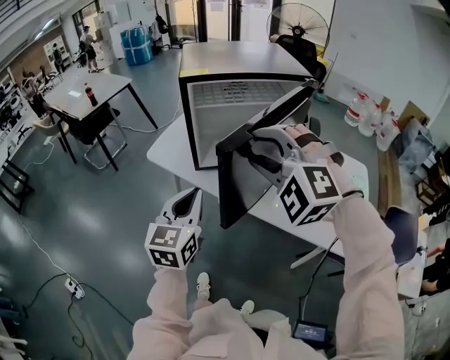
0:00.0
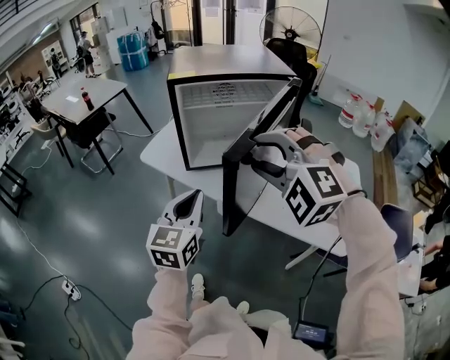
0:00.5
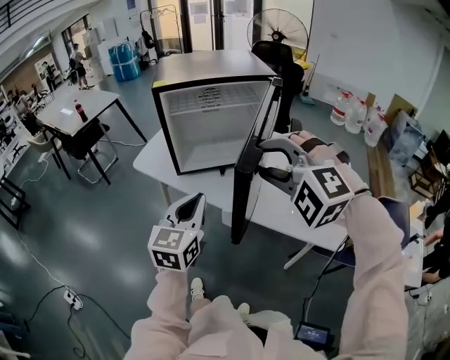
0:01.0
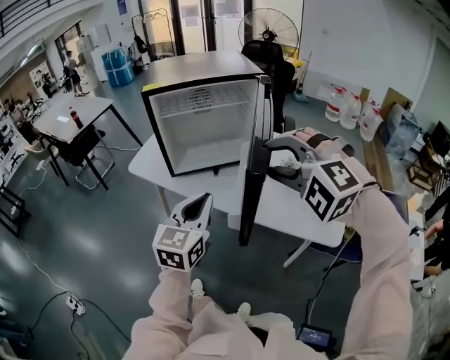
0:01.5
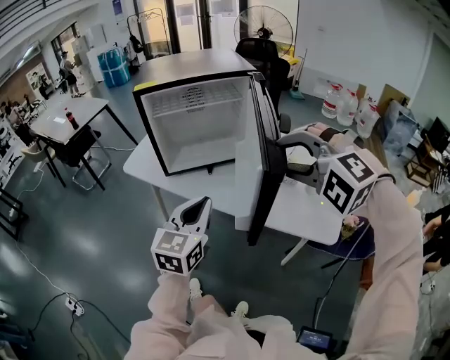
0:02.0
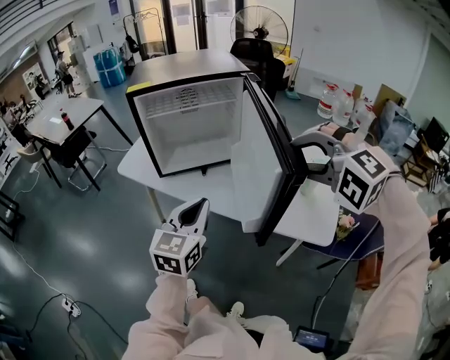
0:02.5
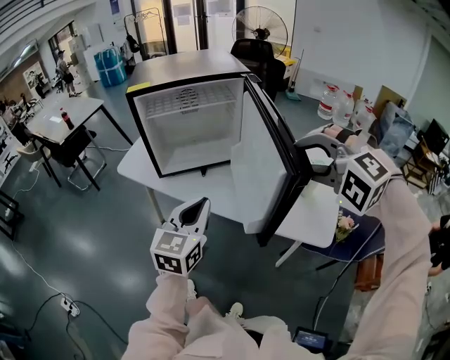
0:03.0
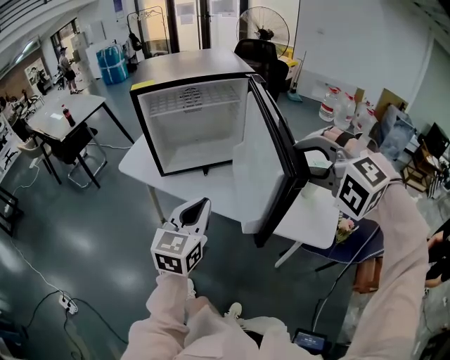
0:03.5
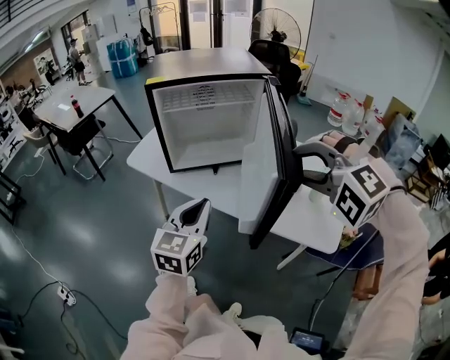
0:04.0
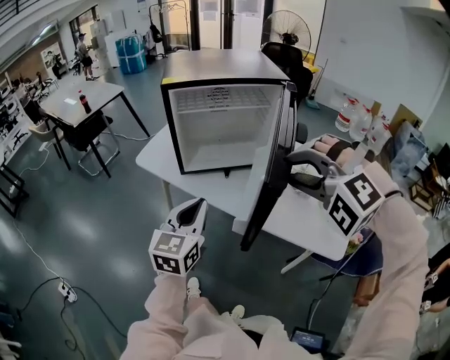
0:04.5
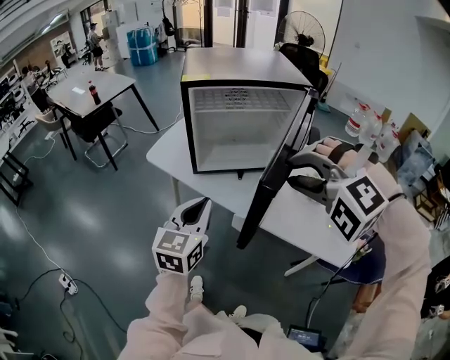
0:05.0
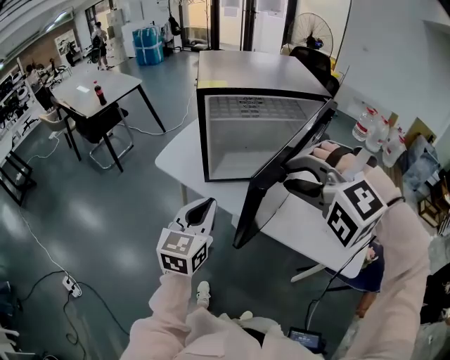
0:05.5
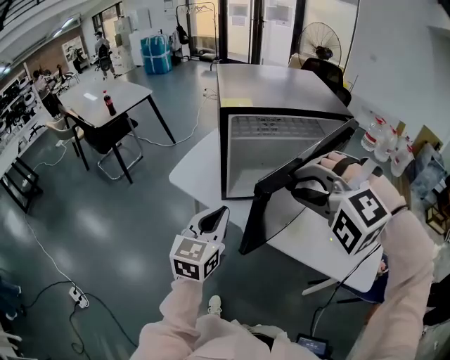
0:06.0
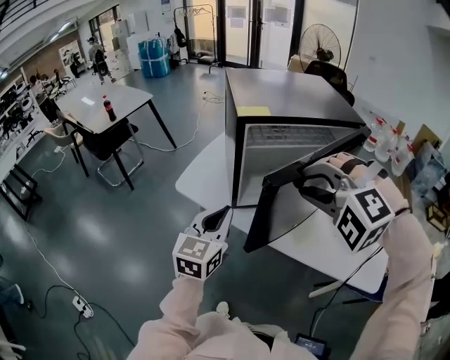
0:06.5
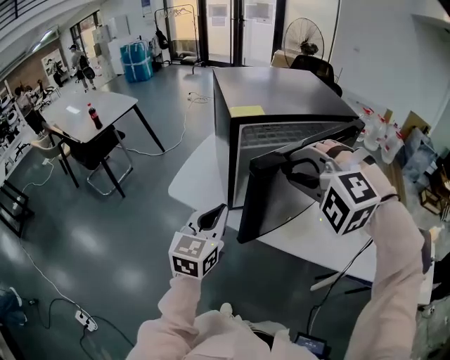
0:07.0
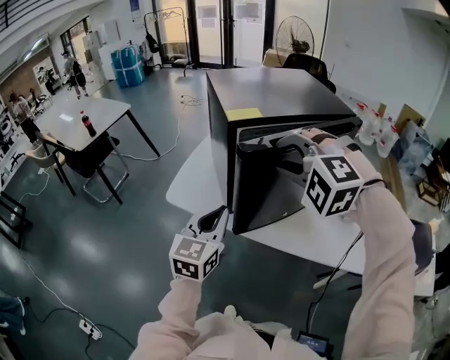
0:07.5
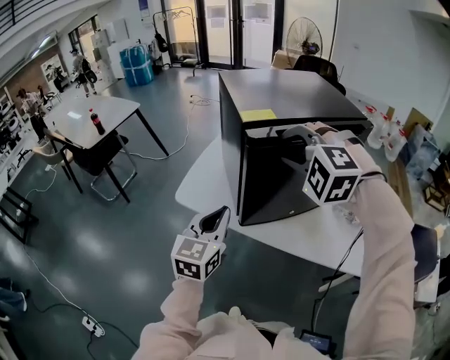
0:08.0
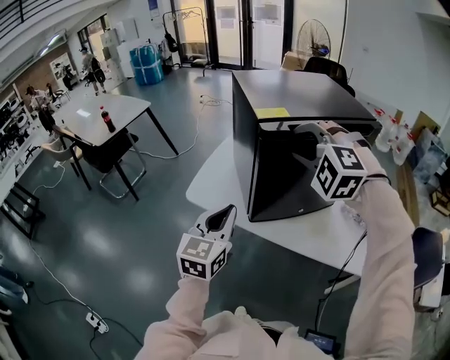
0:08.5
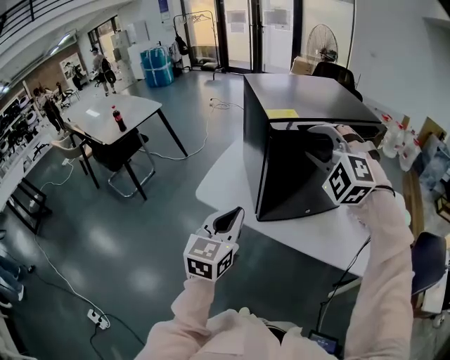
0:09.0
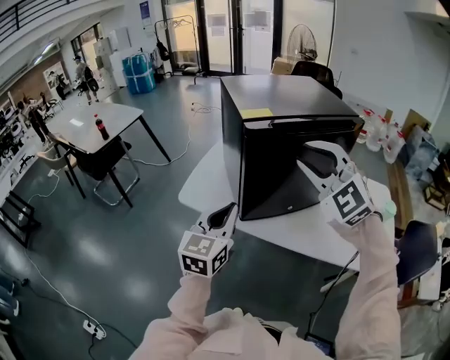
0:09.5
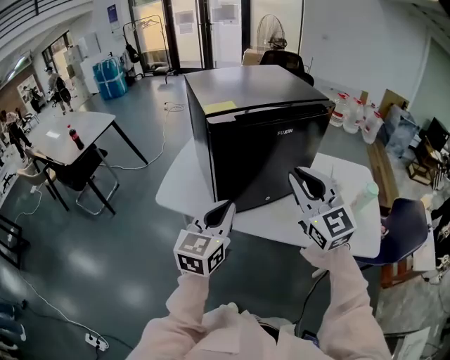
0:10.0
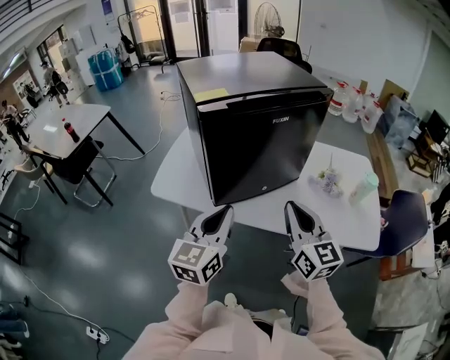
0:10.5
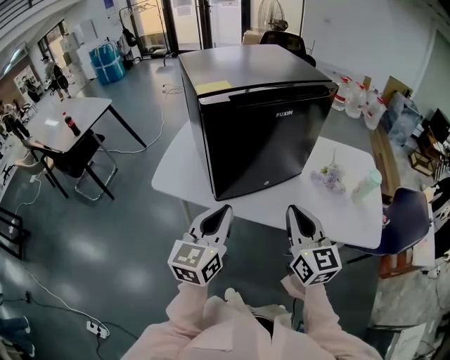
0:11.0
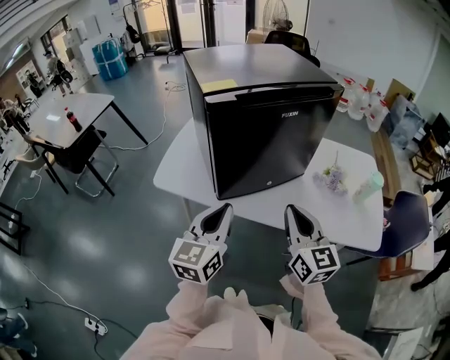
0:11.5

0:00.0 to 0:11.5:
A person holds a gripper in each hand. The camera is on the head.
0:00.0 to 0:02.0: Both grippers move to the right and backward, some 20 cm.
0:02.0 to 0:04.0: There are only small adjustments of the grippers.
0:04.0 to 0:06.0: Both grippers move to the left and forward, some 25 cm.
0:06.0 to 0:07.5: The left gripper travels forward and to the left by approximately 10 cm. Meanwhile the right gripper heads forward and to the left, covering about 15 cm.
0:07.5 to 0:09.5: The right gripper rotates about 40 degrees.
0:09.5 to 0:11.5: The left gripper heads to the right, covering approximately 5 cm. The right gripper goes roughly 20 cm downward, backward and to the right, rolls clockwise, seen from behind, by roughly 60 degrees, and closes its fingers.

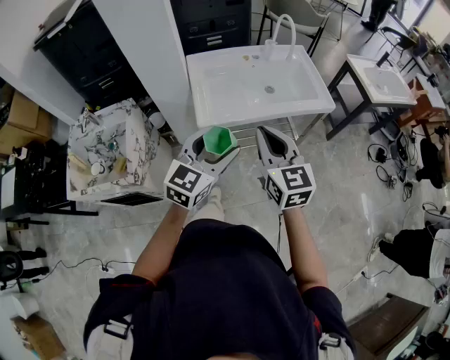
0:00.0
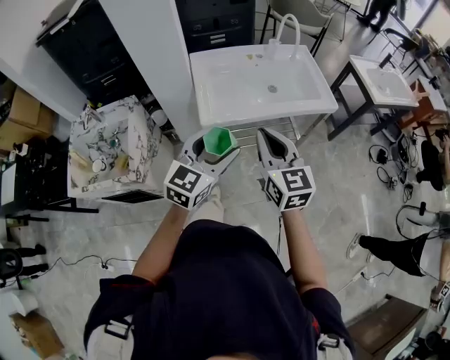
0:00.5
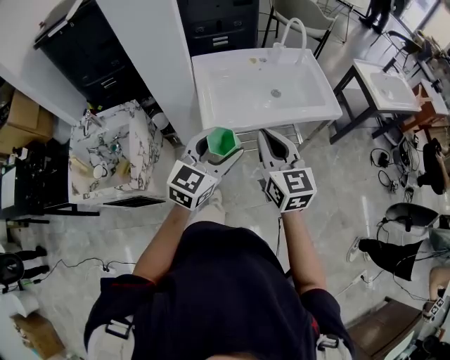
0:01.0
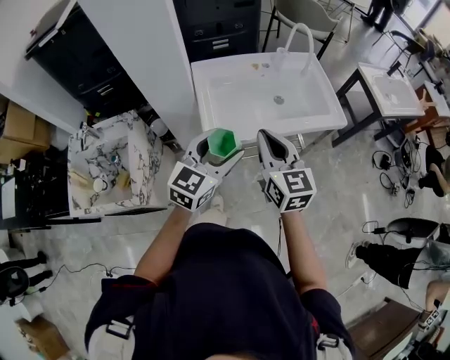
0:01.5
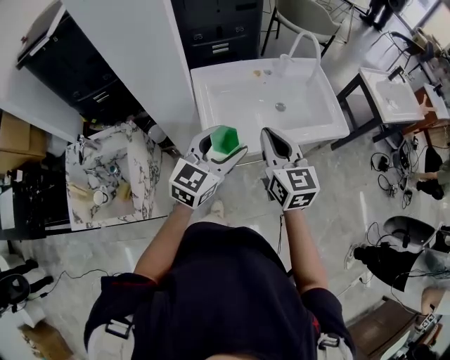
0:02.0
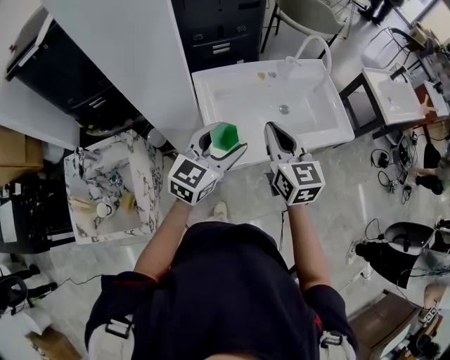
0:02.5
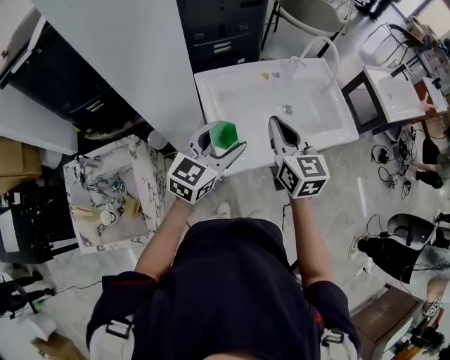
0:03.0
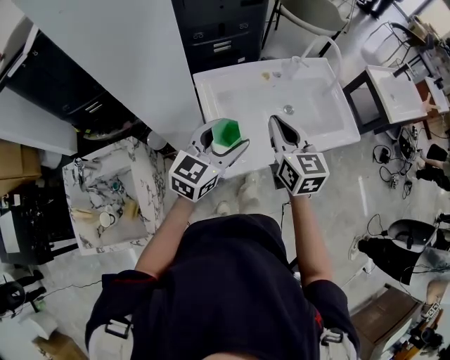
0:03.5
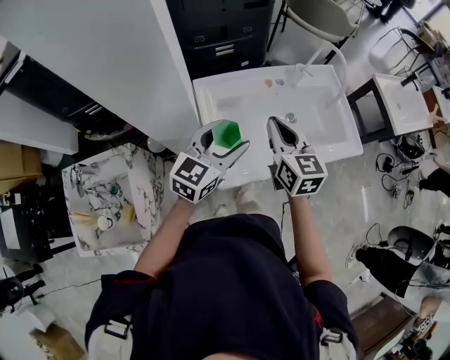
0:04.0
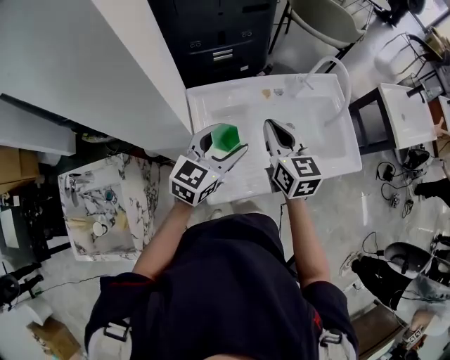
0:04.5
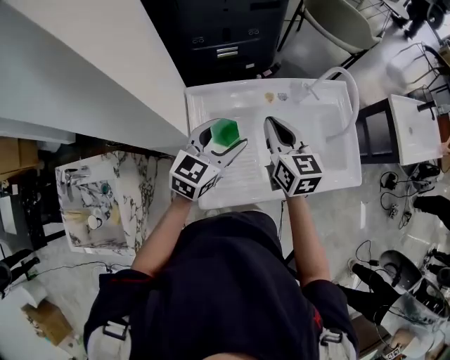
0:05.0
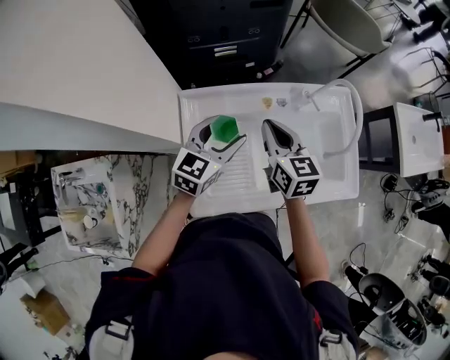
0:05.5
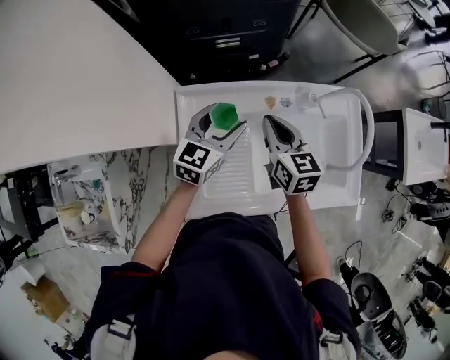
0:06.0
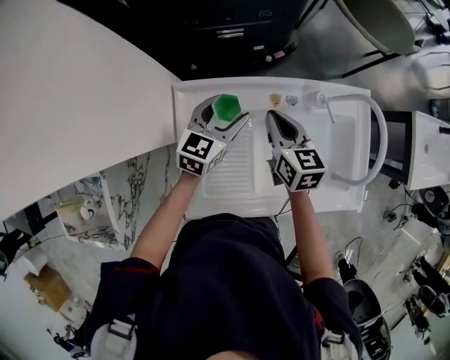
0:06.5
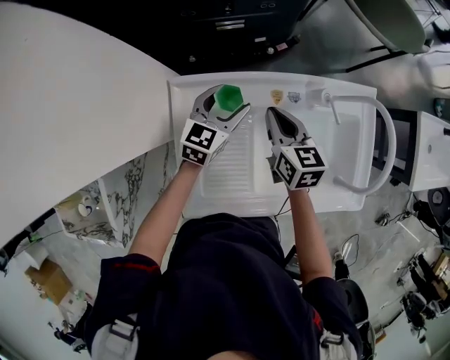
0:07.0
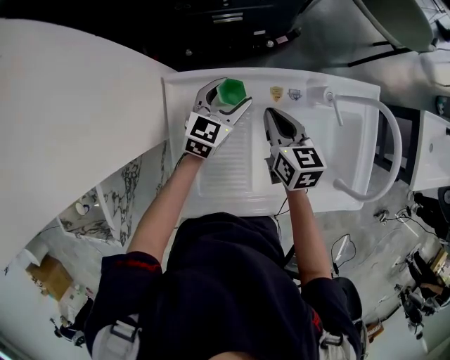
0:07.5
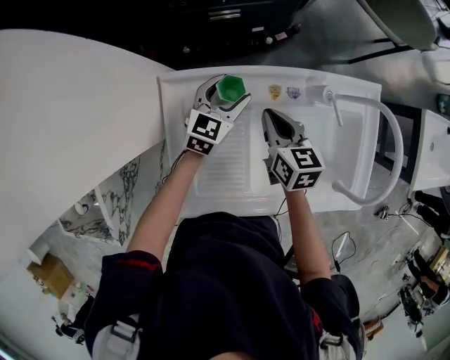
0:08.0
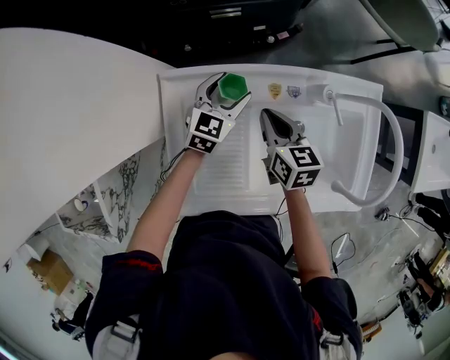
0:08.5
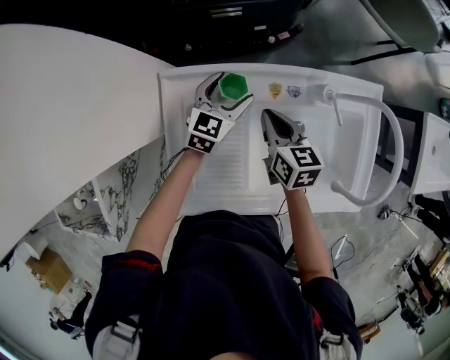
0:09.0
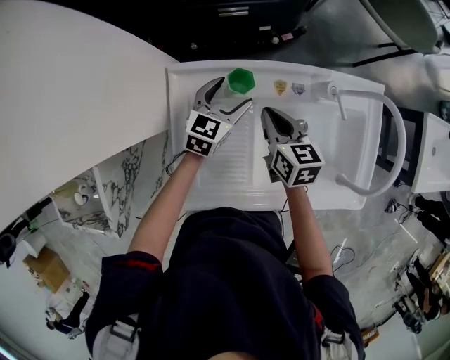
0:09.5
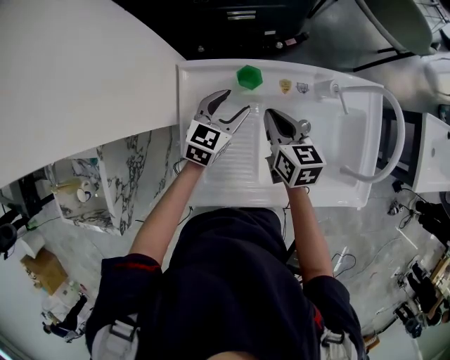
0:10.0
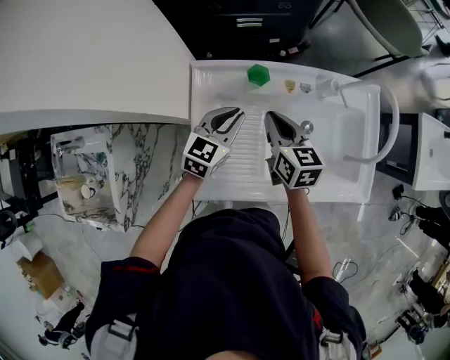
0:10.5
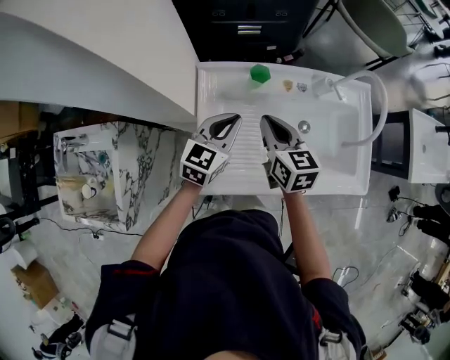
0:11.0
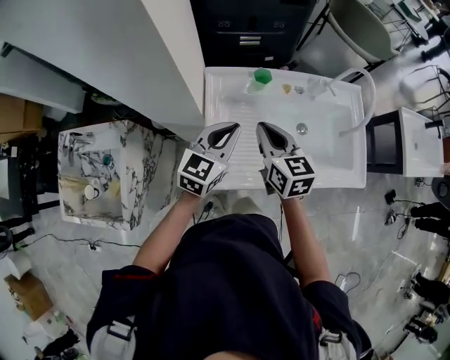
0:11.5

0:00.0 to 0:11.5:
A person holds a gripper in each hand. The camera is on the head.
0:00.0 to 0:02.0: Both grippers move forward and to the left, roughly 15 cm.
0:02.0 to 0:04.0: The left gripper travels forward and to the left by approximately 15 cm, while the right gripper moves forward, roughly 15 cm.
0:04.0 to 0:06.0: The grippers both shift forward and downward by some 25 cm.
0:06.0 to 0:07.5: The left gripper heads downward and forward, covering some 15 cm. Meanwhile the right gripper shifts approximately 10 cm downward.
0:07.5 to 0:09.5: The grippers stay close to where they were, moving slightly.
0:09.5 to 0:11.5: The left gripper heads backward and upward, covering roughly 25 cm, and closes its fingers, while the right gripper travels backward, upward and to the left by about 20 cm.

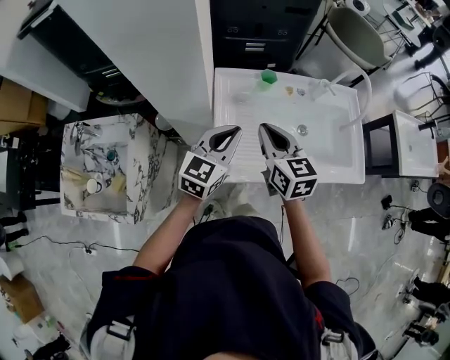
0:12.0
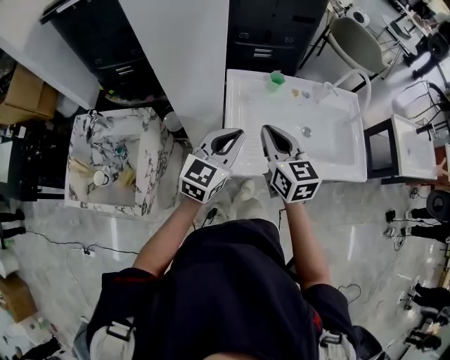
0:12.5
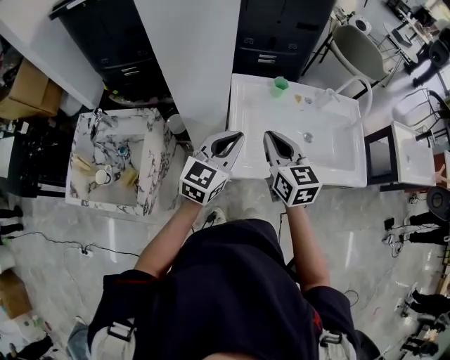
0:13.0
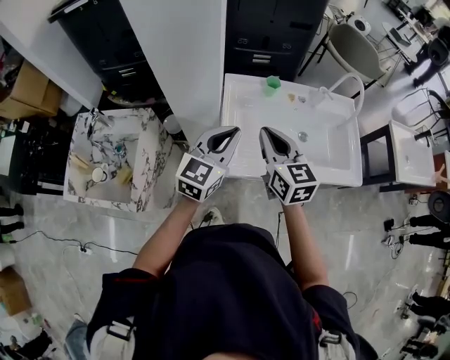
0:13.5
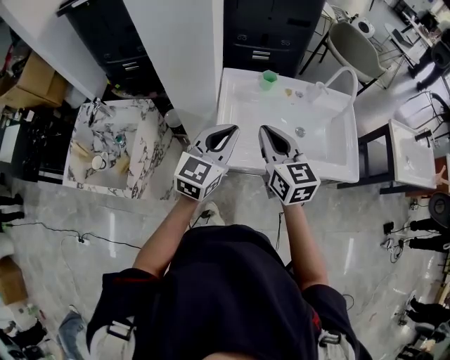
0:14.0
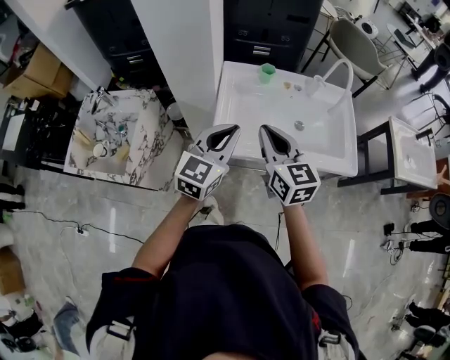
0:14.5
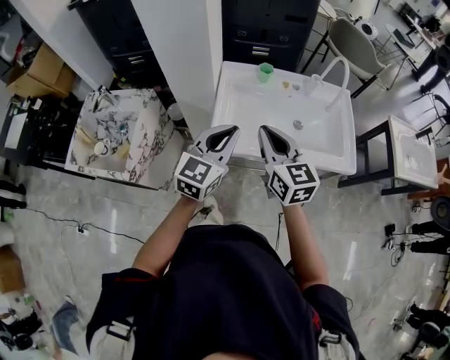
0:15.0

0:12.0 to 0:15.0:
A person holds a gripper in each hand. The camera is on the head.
0:12.0 to 0:13.5: The left gripper moves backward and upward, about 10 cm, while the right gripper goes some 5 cm backward.
0:13.5 to 0:15.0: The grippers both shift backward and to the right by approximately 10 cm.

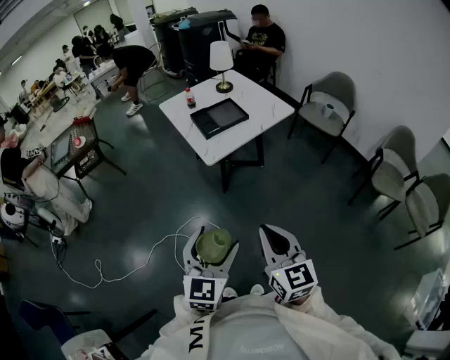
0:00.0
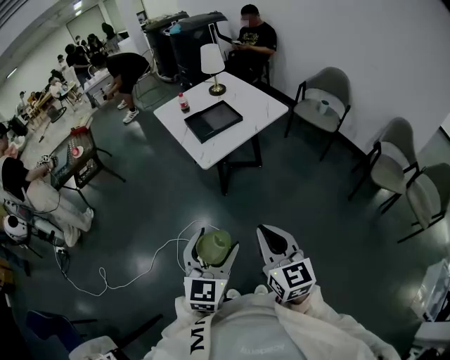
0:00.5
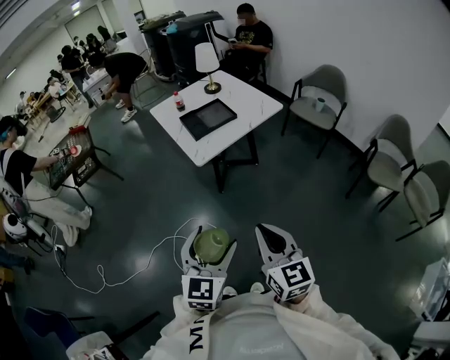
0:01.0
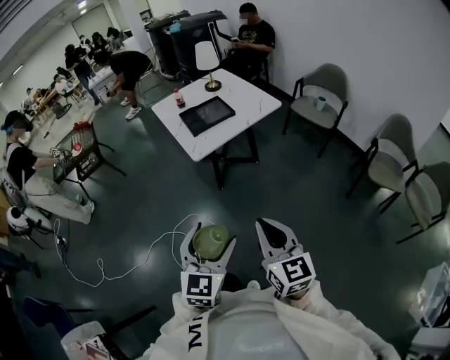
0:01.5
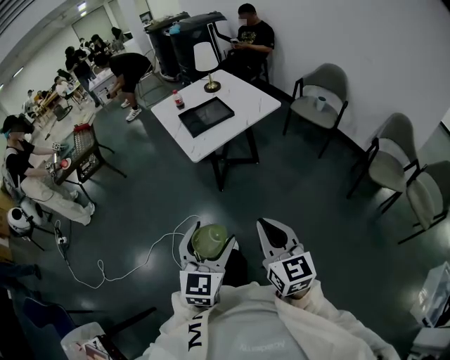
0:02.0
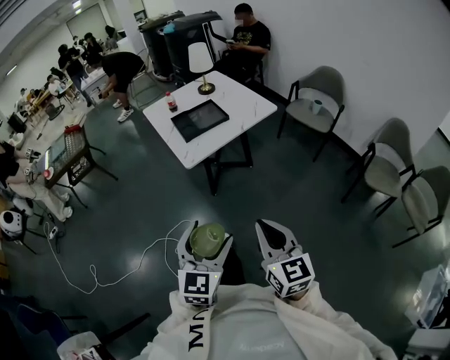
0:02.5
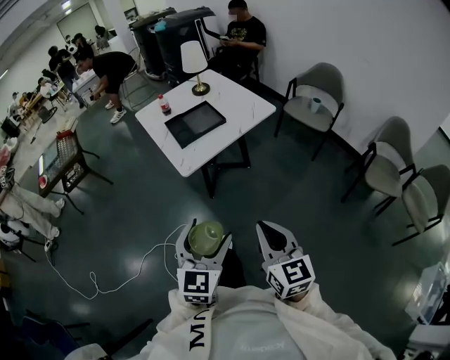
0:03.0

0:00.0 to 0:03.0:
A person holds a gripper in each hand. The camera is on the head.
0:00.0 to 0:01.5: The grippers both shift to the right by some 10 cm.
0:01.5 to 0:03.0: The two grippers go roughly 10 cm forward.
